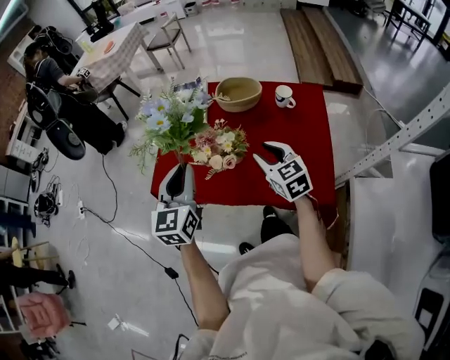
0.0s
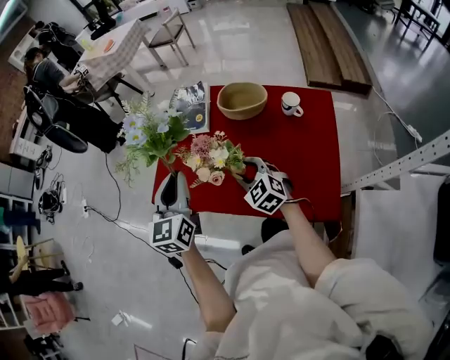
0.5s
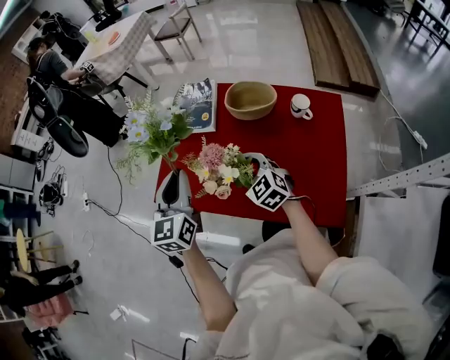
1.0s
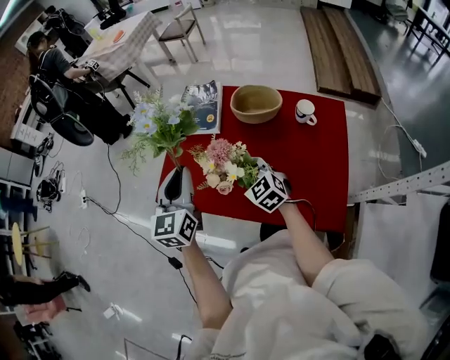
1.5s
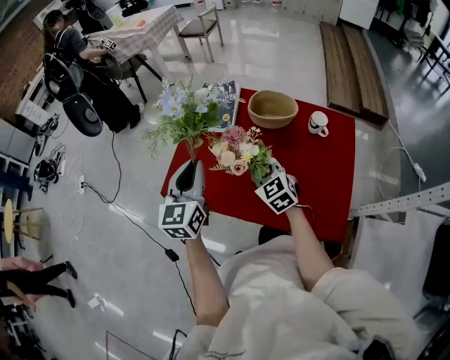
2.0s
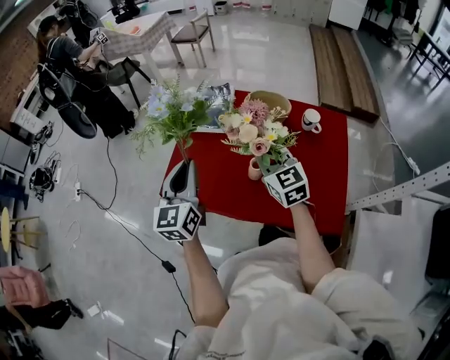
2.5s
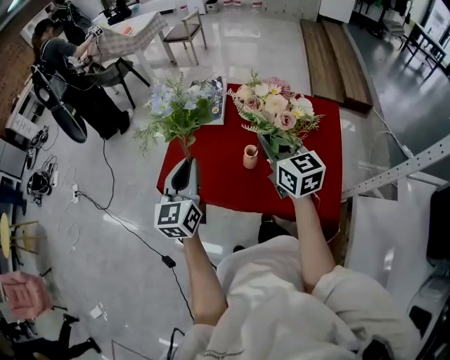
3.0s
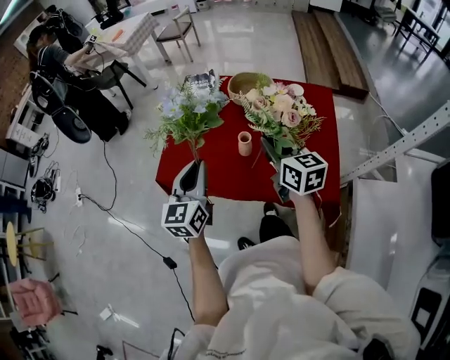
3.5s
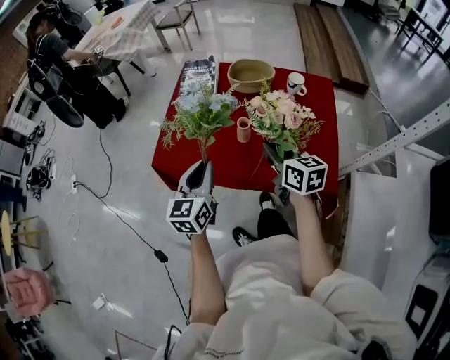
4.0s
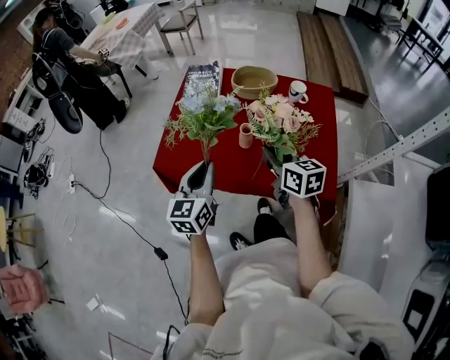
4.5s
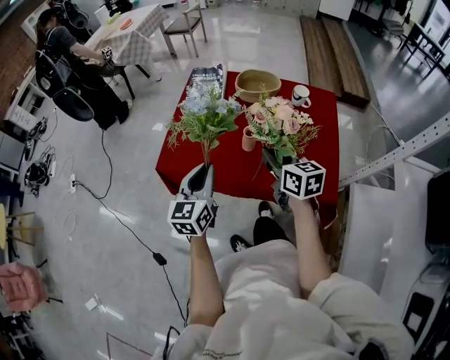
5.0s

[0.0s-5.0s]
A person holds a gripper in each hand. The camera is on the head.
0.0s to 2.5s: Both grippers travel together forward, about 10 cm. The right gripper goes downward and returns, about 10 cm each way, and closes up.
2.5s to 5.0s: The left gripper moves backward and downward, approximately 10 cm, while the right gripper shifts approximately 10 cm backward, and rotates about 30 degrees.

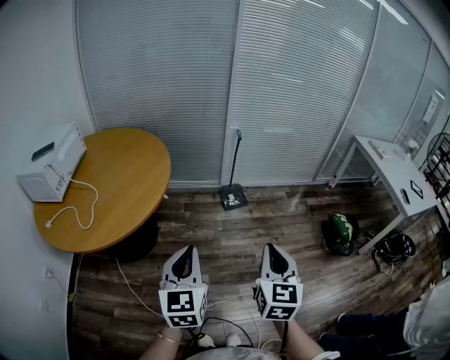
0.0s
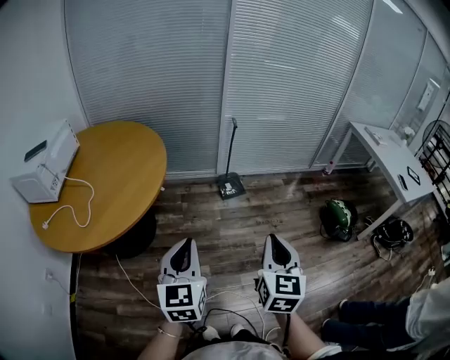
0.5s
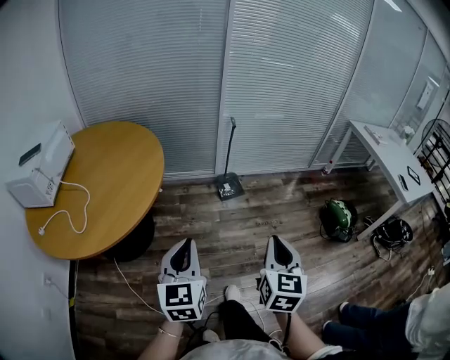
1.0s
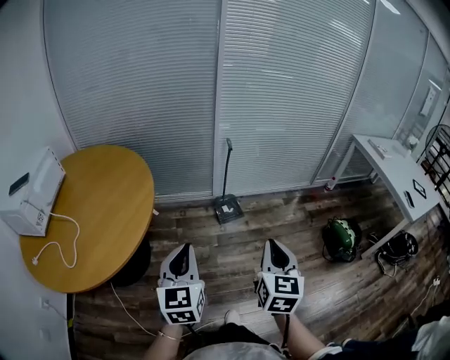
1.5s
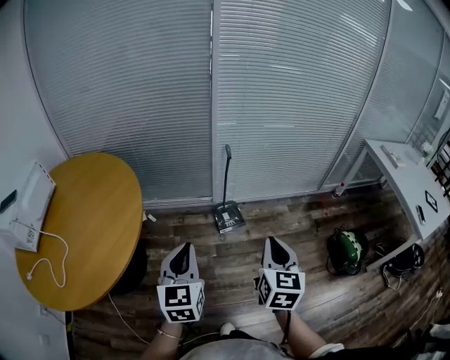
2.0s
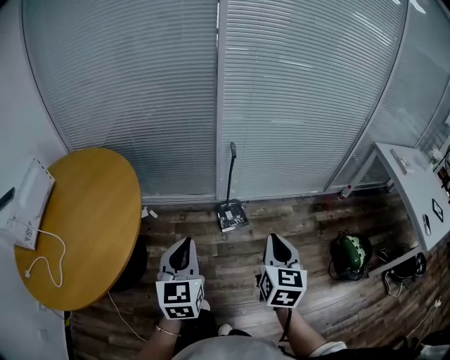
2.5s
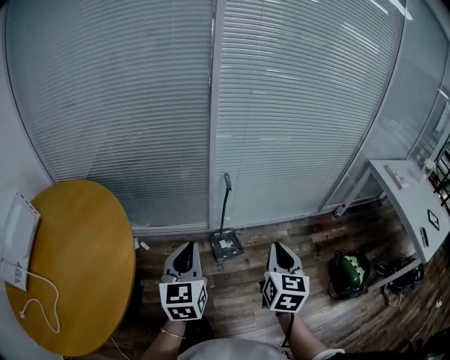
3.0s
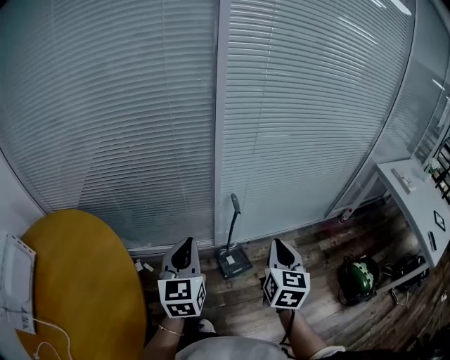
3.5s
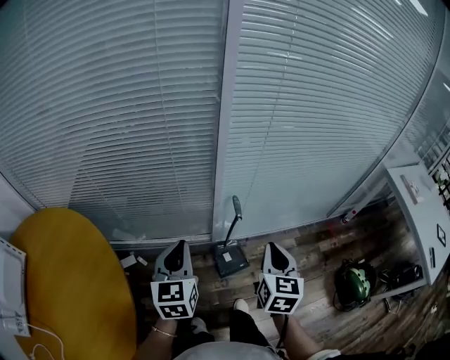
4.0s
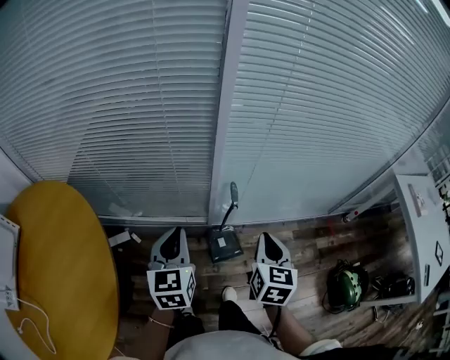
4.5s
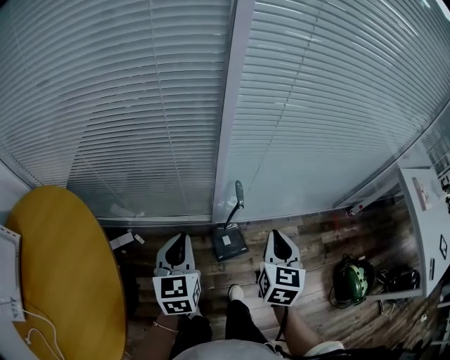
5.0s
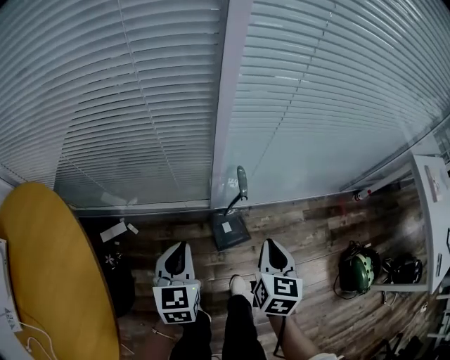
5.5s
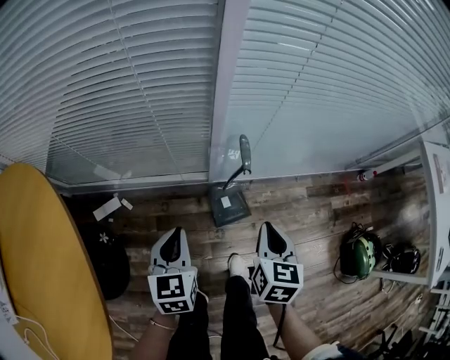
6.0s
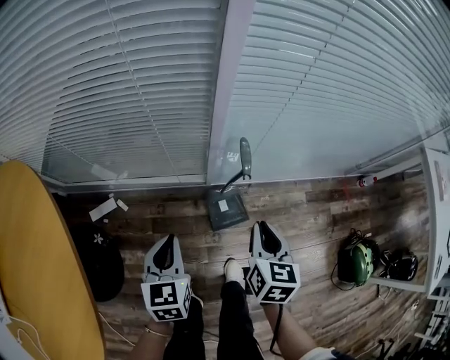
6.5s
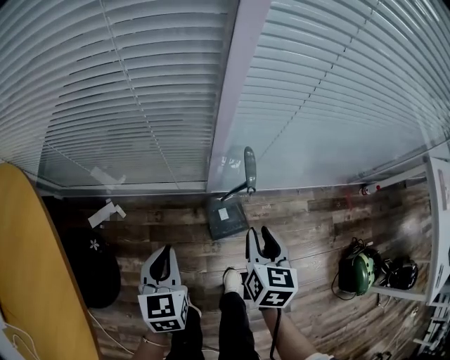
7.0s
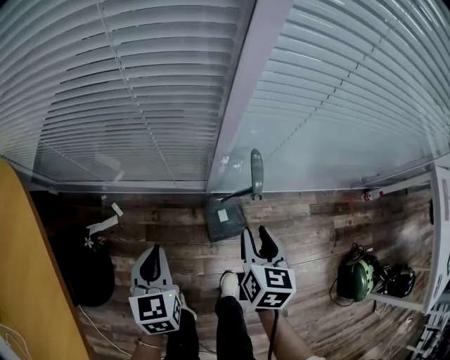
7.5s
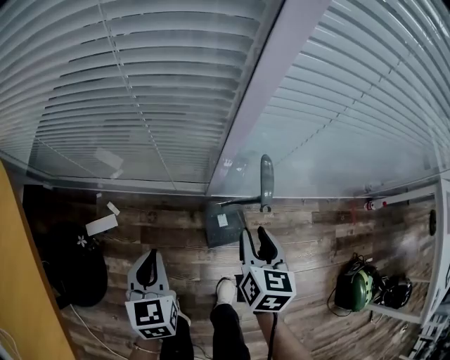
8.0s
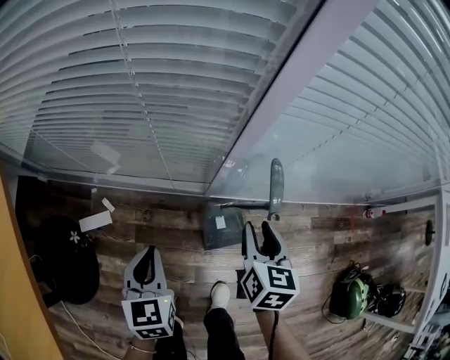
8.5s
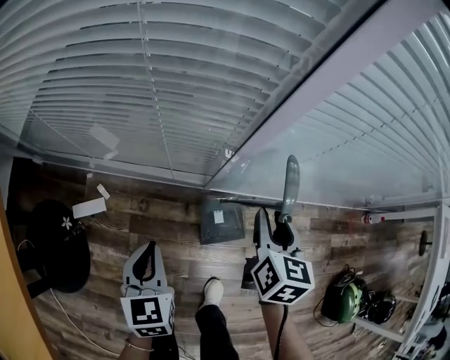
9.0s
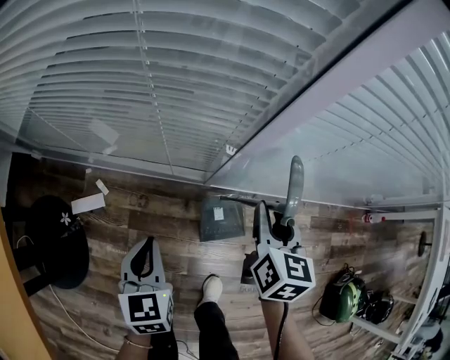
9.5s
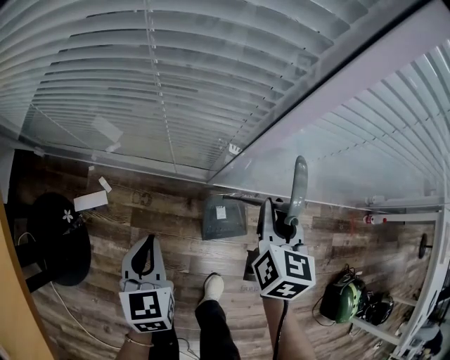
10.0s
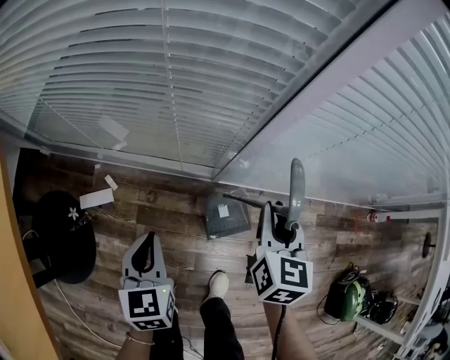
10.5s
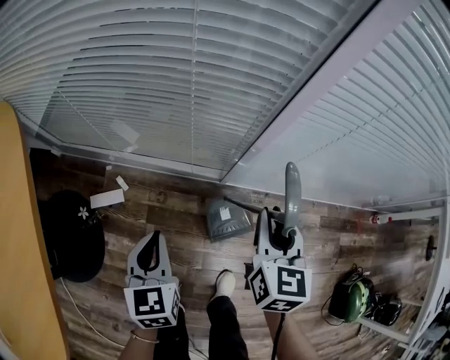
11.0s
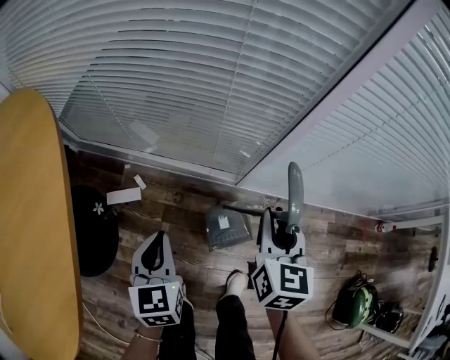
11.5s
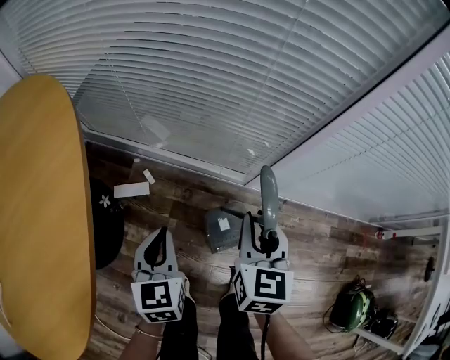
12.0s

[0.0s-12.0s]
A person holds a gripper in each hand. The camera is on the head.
0.0s to 2.0s: The two grippers go about 25 cm forward.
2.0s to 4.0s: Both grippers travel together forward, approximately 35 cm.
4.0s to 6.0s: Both grippers travel together downward, about 20 cm.
6.0s to 8.0s: The right gripper heads downward and forward, covering about 15 cm, and opens; the left gripper is displaced downward by approximately 10 cm.
8.0s to 10.0s: The right gripper travels forward by approximately 10 cm.
10.0s to 12.0s: The right gripper shifts roughly 20 cm to the left and backward; the left gripper shifts approximately 15 cm to the left, upward and backward.

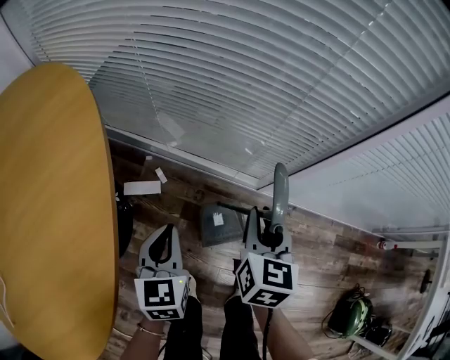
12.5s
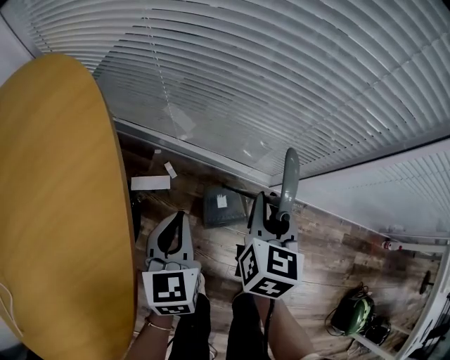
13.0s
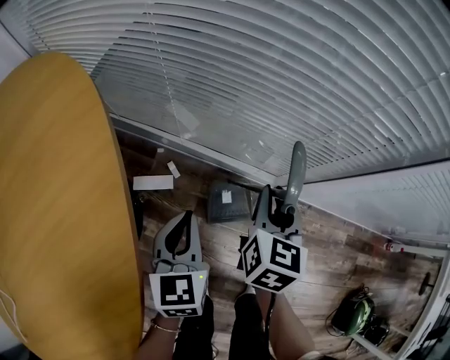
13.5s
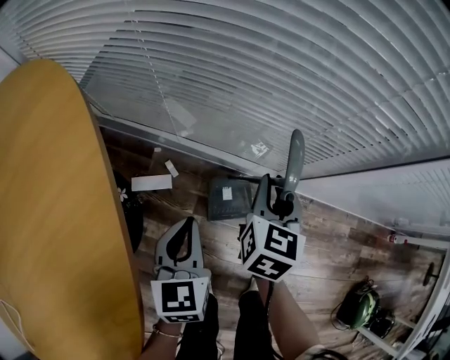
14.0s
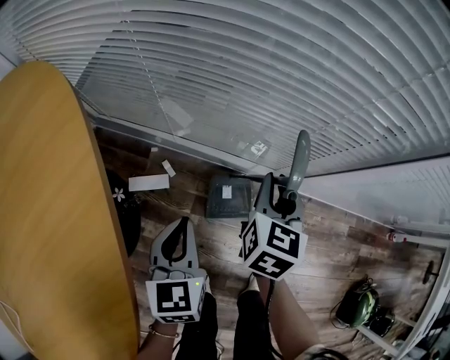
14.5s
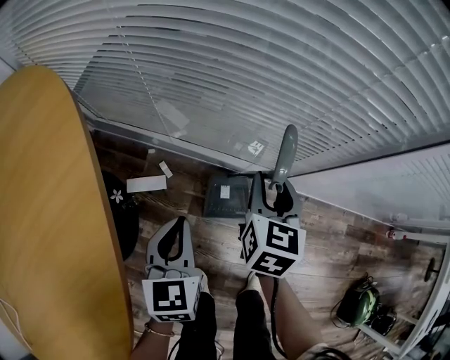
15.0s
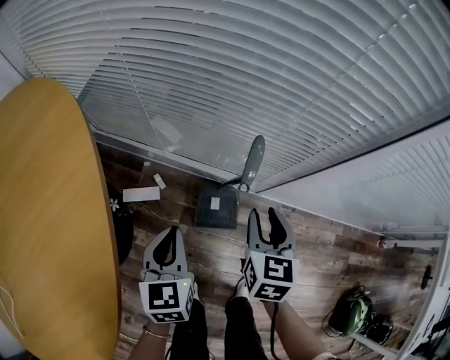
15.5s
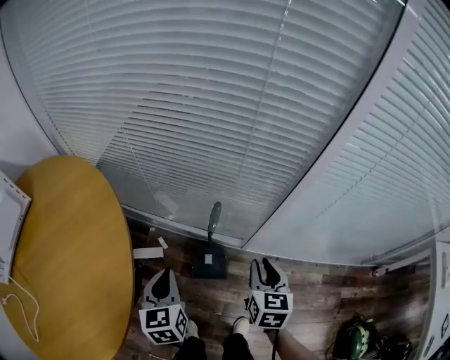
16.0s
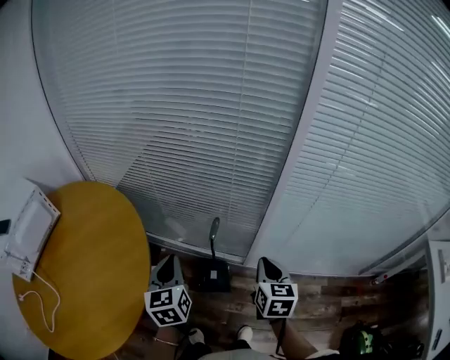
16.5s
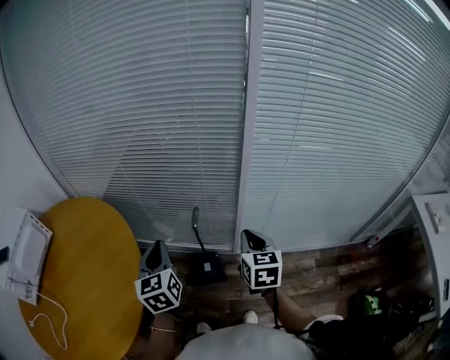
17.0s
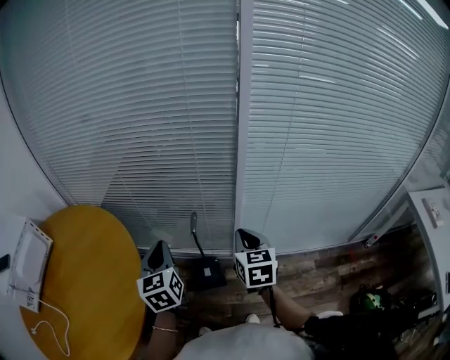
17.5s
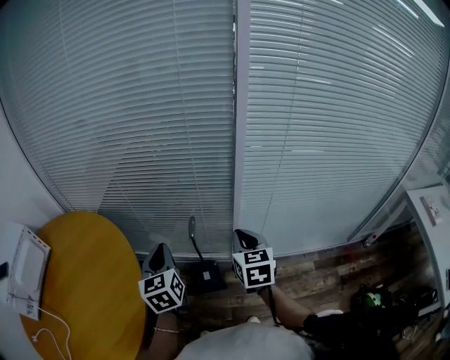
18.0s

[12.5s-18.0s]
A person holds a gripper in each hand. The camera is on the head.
12.5s to 14.5s: The right gripper shifts roughly 10 cm forward; the left gripper shifts some 5 cm forward.
14.5s to 16.0s: The left gripper moves upward and backward, some 15 cm, while the right gripper is displaced upward, backward and to the right by about 20 cm.
16.0s to 18.0s: Both grippers move upward, roughly 15 cm. The right gripper closes up.

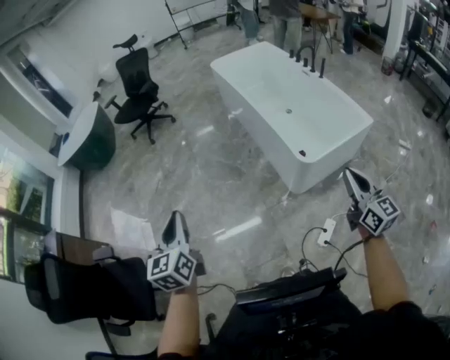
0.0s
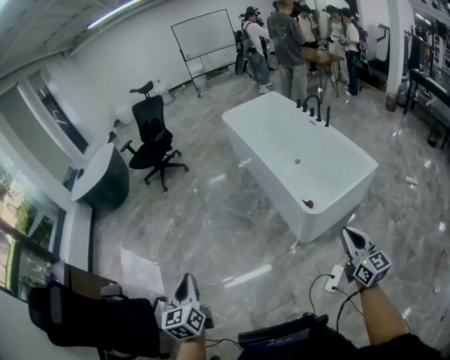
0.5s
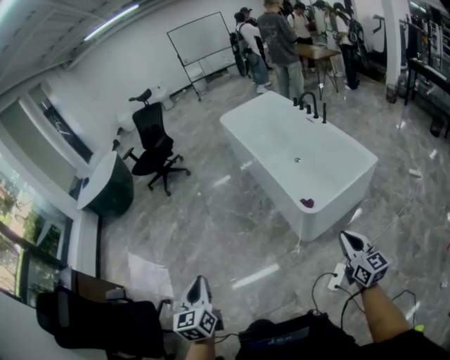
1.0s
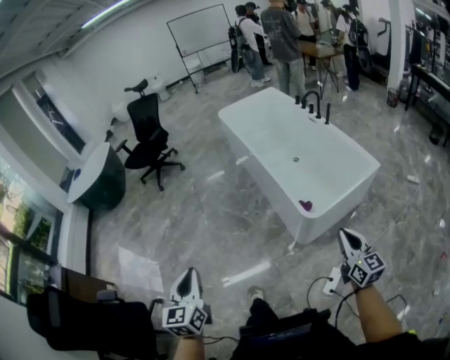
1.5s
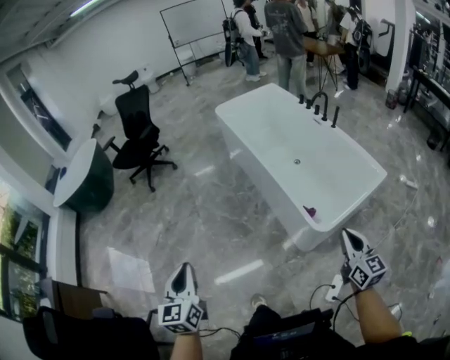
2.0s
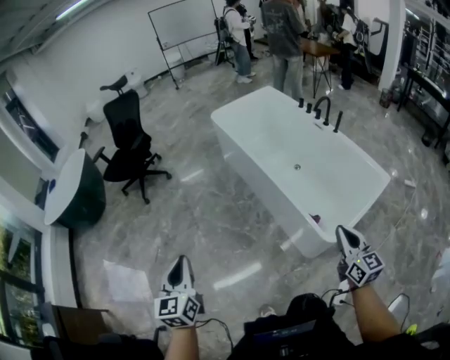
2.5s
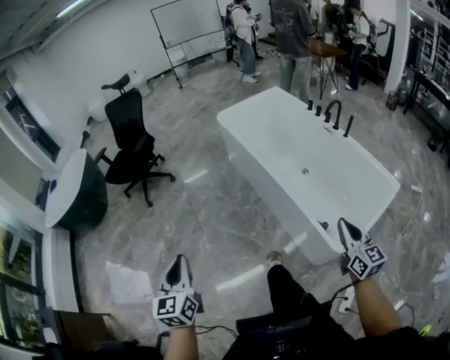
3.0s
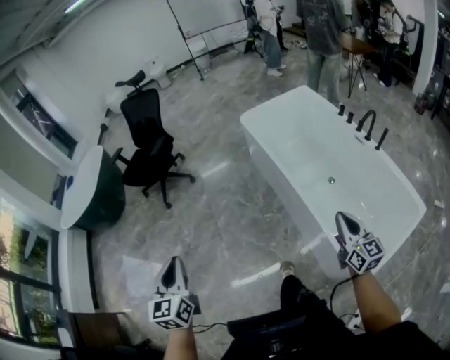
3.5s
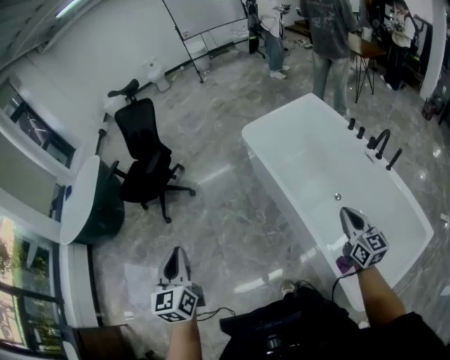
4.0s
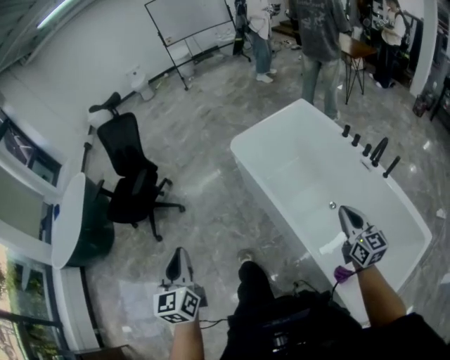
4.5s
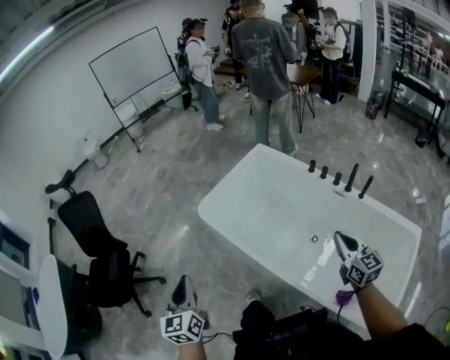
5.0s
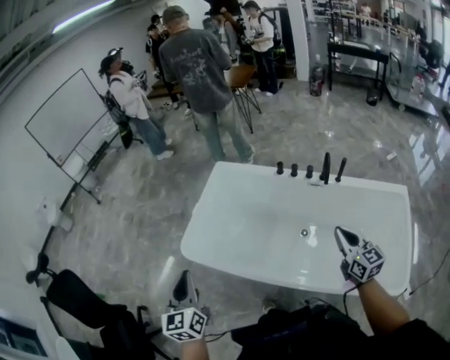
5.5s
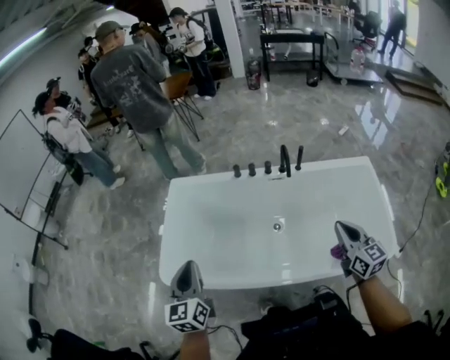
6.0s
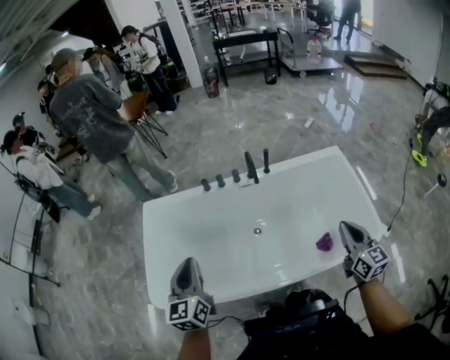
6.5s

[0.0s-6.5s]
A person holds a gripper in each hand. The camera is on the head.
0.0s to 2.0s: The left gripper goes about 20 cm forward; the right gripper is displaced forward and downward by about 20 cm.
2.0s to 4.5s: The two grippers travel together, forward, roughly 70 cm.
4.5s to 6.5s: The right gripper changes place by about 15 cm, and changes its angle by approximately 70 degrees, while the left gripper shifts by about 60 cm, and changes its angle by some 70 degrees.
